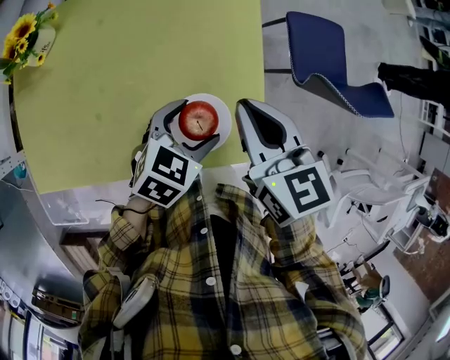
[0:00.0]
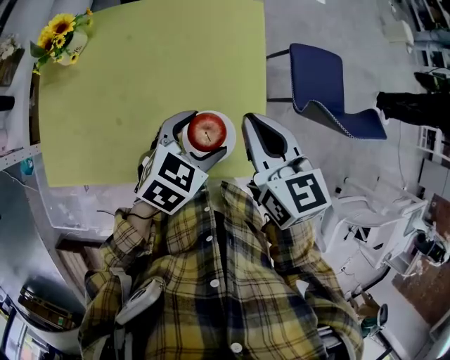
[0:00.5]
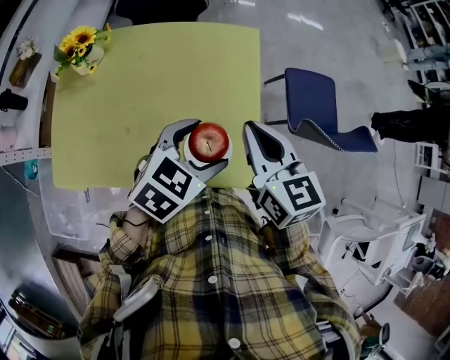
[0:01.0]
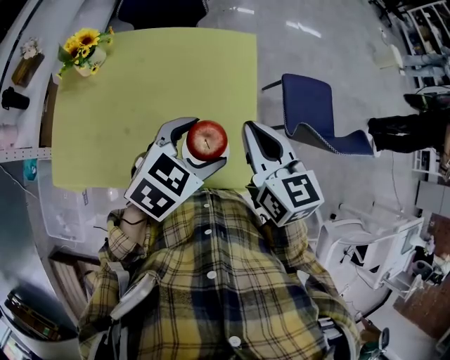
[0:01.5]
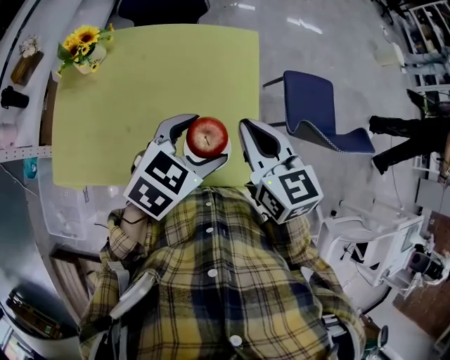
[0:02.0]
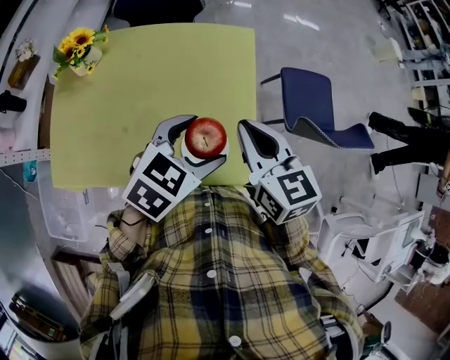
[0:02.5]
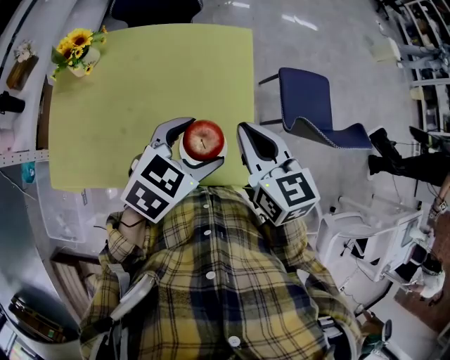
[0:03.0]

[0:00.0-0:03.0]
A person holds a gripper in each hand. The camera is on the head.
0:00.0 to 0:01.5: The left gripper goes some 15 cm upward, while the right gripper goes roughly 10 cm upward.
0:01.5 to 0:03.0: There are only small adjustments of the grippers.

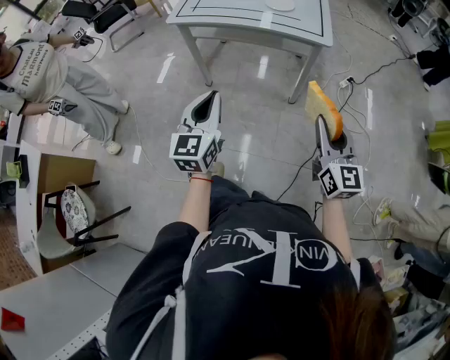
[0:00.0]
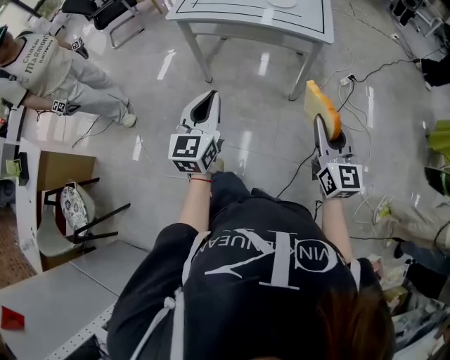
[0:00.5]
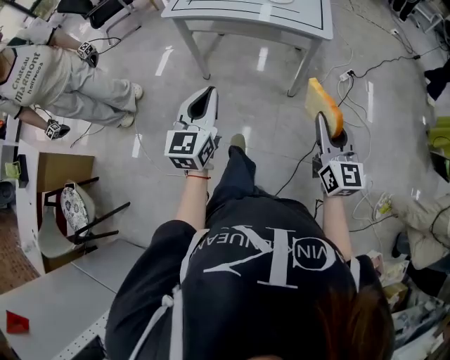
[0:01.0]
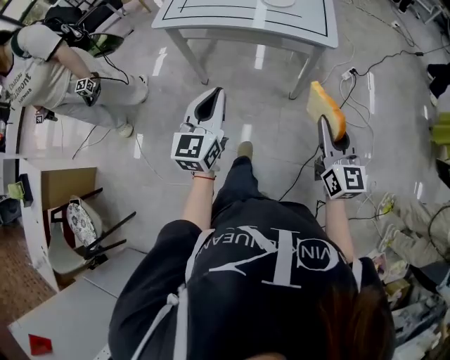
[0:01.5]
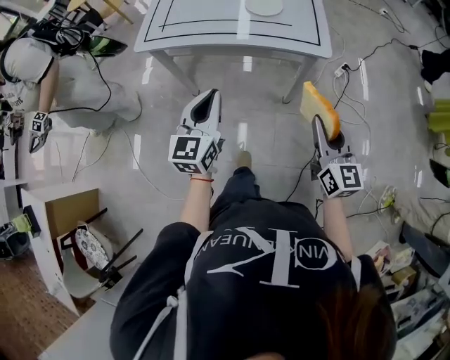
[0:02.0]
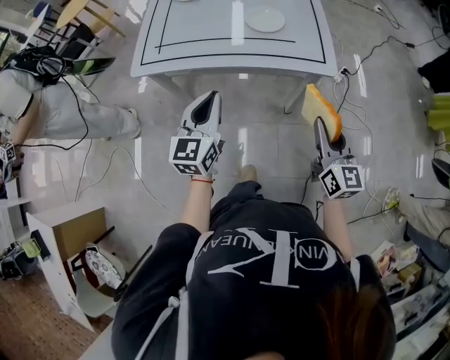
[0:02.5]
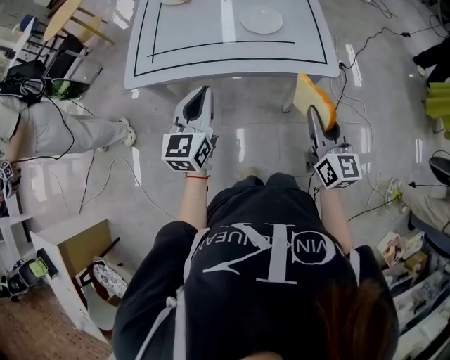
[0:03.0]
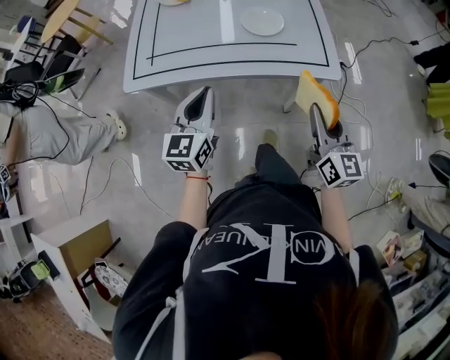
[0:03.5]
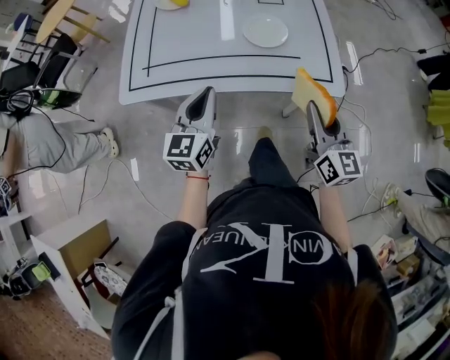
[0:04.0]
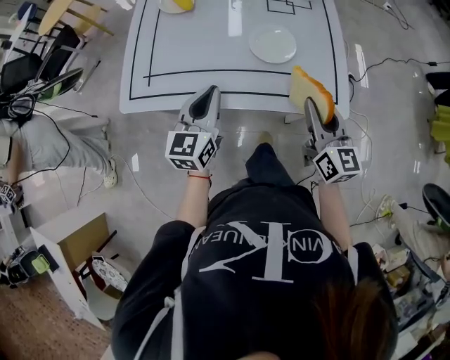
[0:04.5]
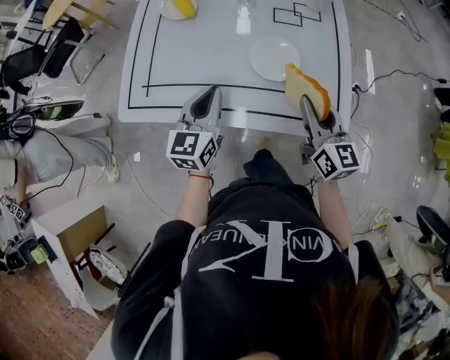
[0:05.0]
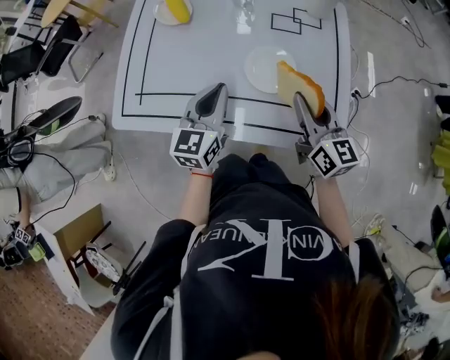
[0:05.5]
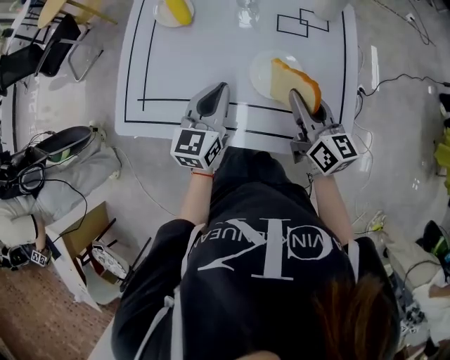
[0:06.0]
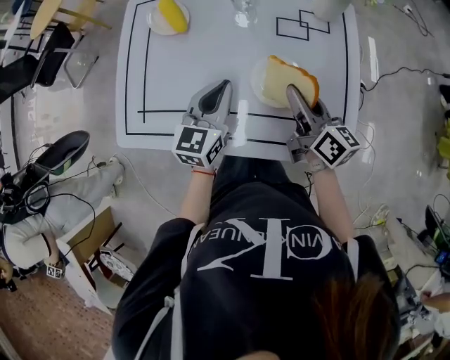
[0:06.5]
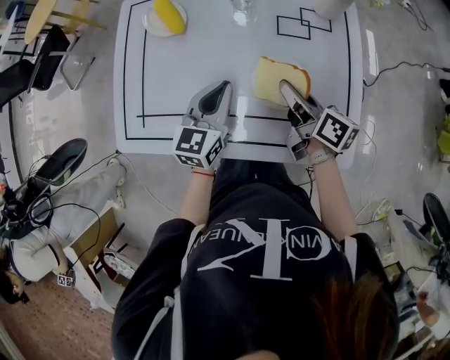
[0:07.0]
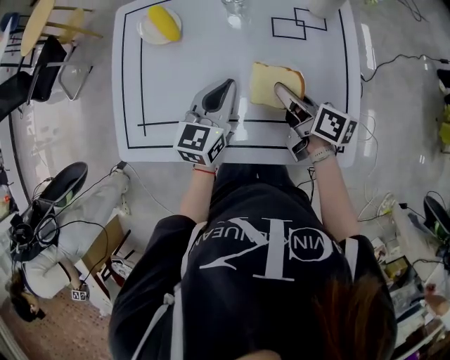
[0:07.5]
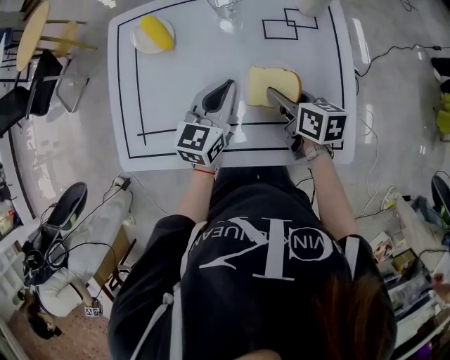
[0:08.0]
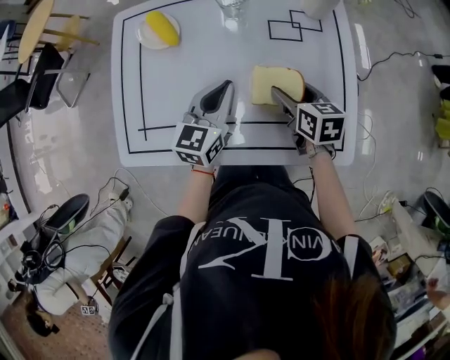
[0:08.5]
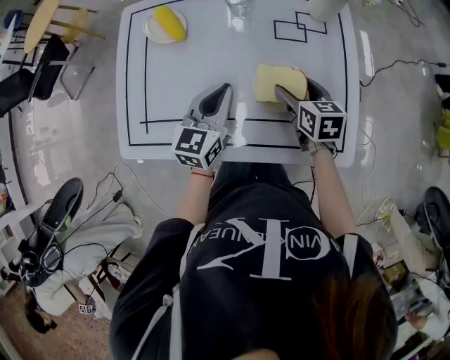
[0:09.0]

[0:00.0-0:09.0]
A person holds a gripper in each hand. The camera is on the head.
0:00.0 to 0:02.0: Both grippers move forward, approximately 20 cm.
0:02.0 to 0:04.5: Both grippers move forward, some 30 cm.
0:04.5 to 0:07.0: The two grippers go about 20 cm forward. The right gripper rolls clockwise, seen from behind, by roughly 40 degrees.
0:07.0 to 0:09.0: The right gripper swivels some 40 degrees, and opens.

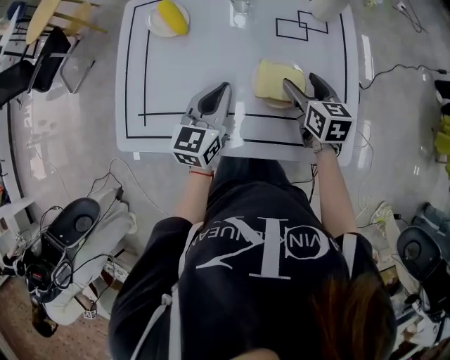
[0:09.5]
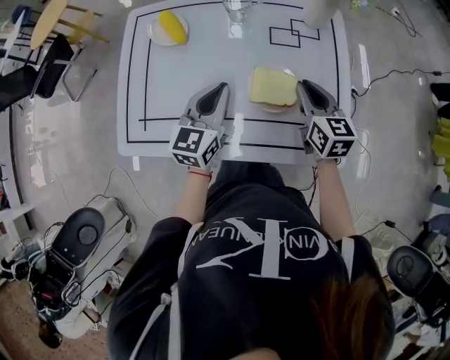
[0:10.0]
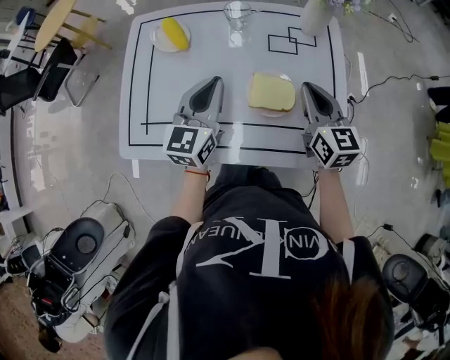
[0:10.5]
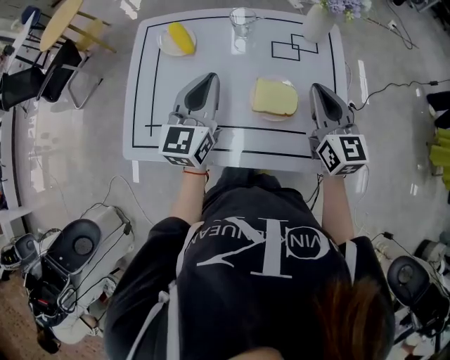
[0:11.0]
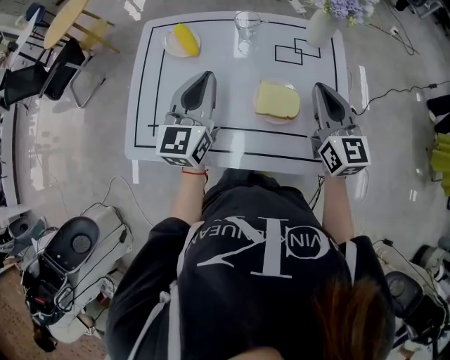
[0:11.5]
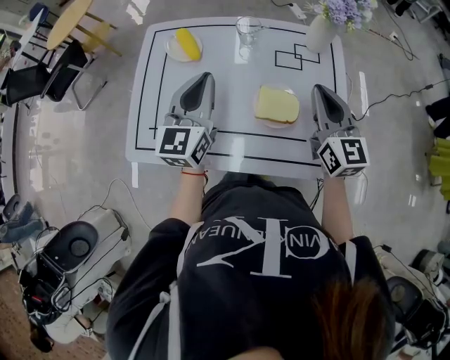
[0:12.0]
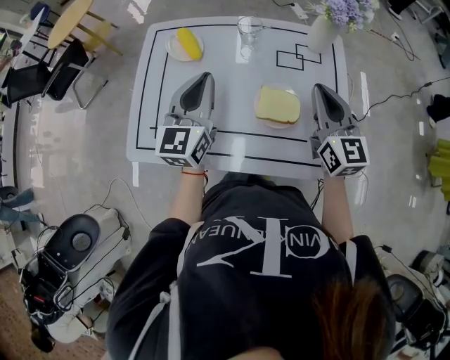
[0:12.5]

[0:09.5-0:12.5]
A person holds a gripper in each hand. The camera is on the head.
0:09.5 to 0:11.0: Both grippers move upward, some 15 cm. The right gripper swivels approximately 30 degrees, and closes.
0:11.0 to 0:12.5: The grippers stay close to where they were, moving slightly.

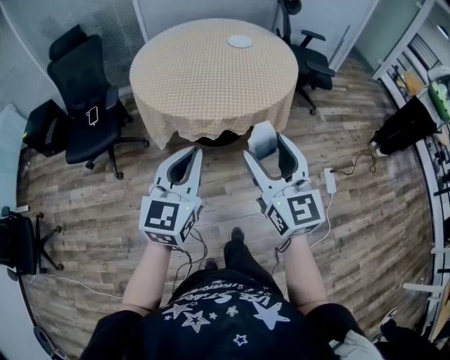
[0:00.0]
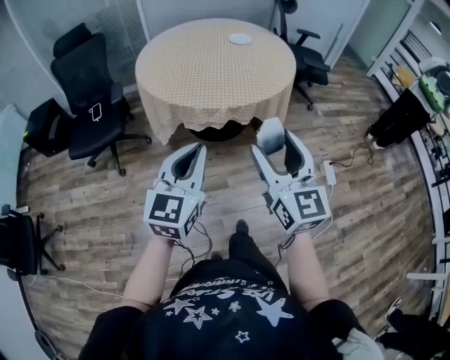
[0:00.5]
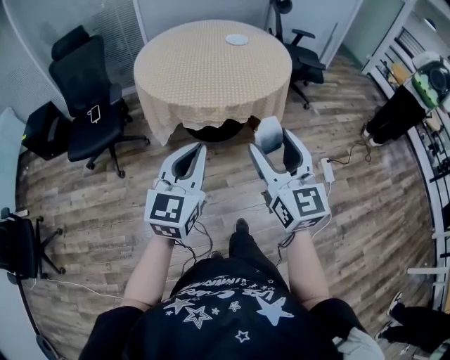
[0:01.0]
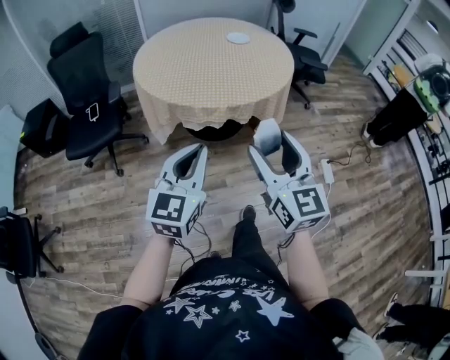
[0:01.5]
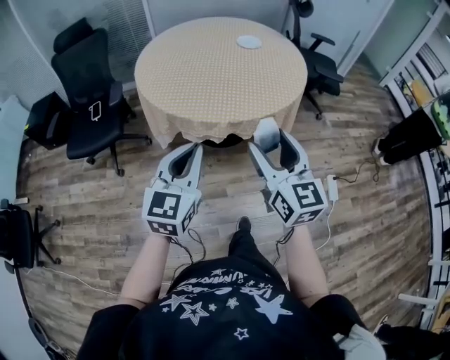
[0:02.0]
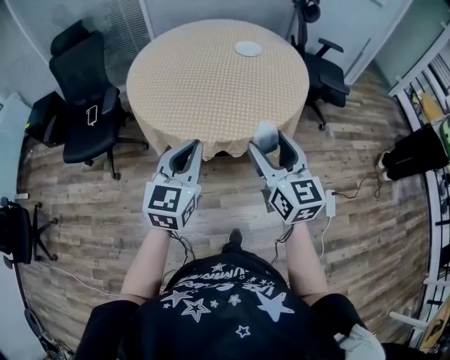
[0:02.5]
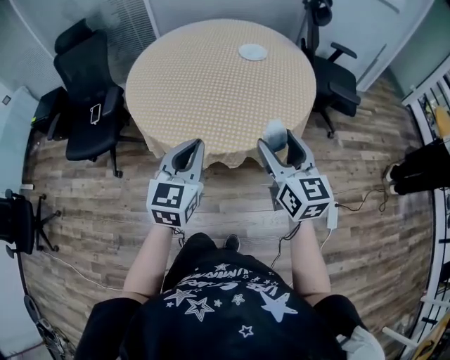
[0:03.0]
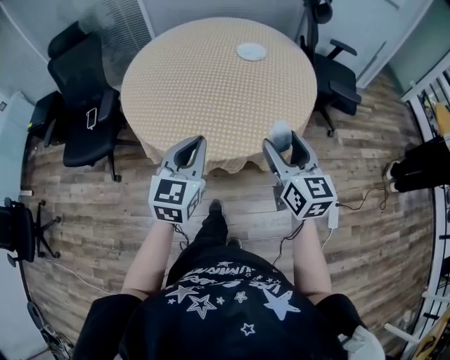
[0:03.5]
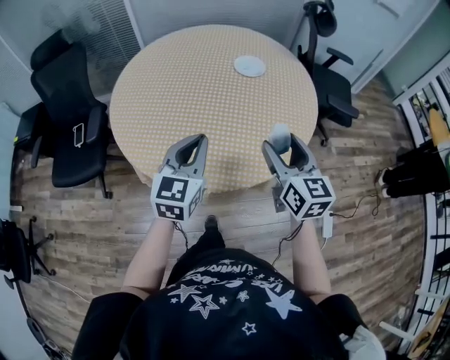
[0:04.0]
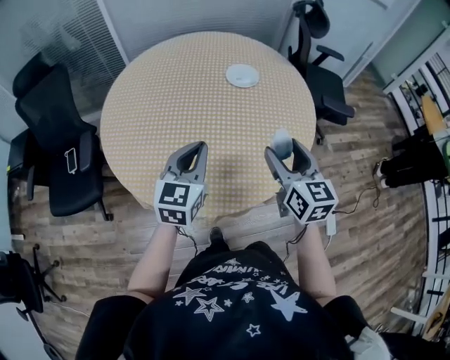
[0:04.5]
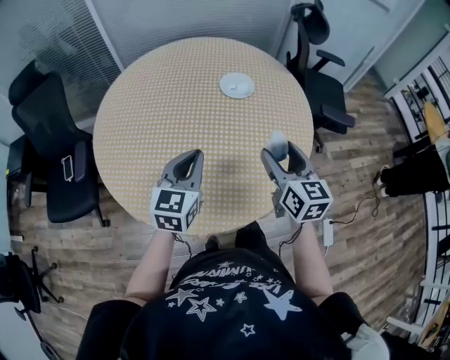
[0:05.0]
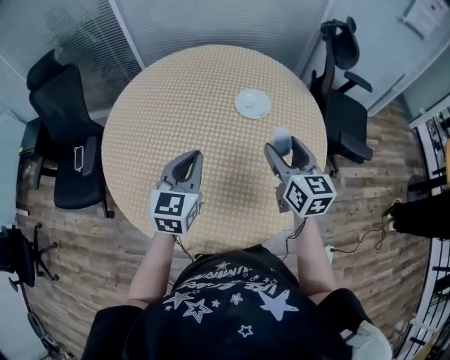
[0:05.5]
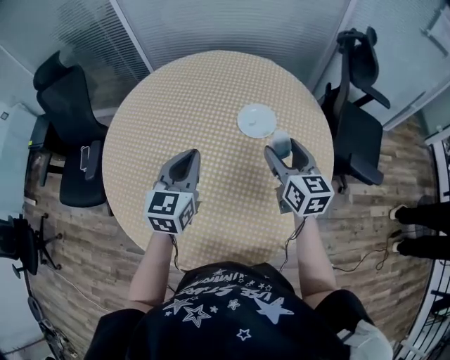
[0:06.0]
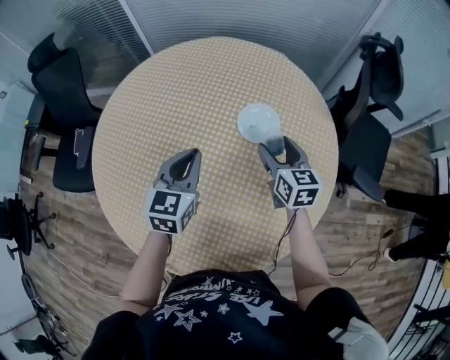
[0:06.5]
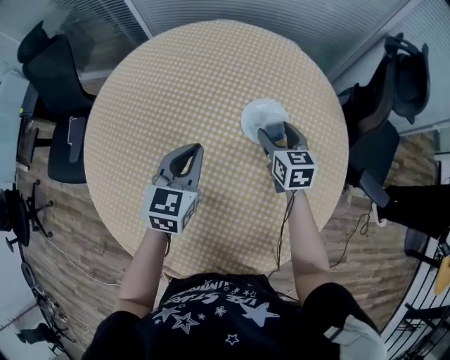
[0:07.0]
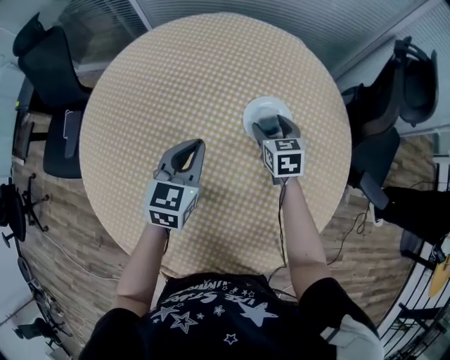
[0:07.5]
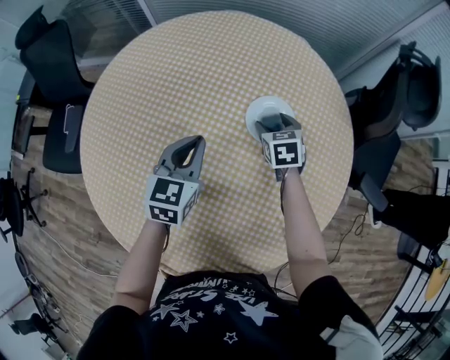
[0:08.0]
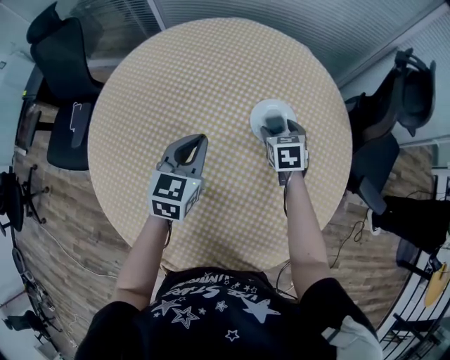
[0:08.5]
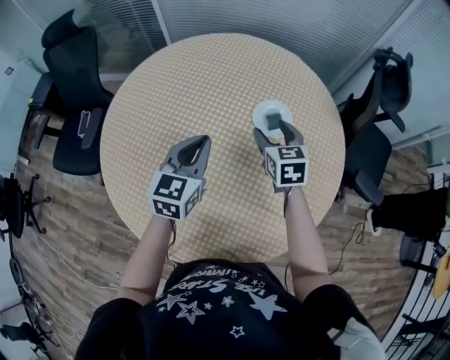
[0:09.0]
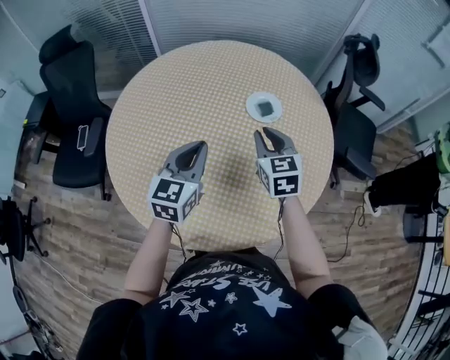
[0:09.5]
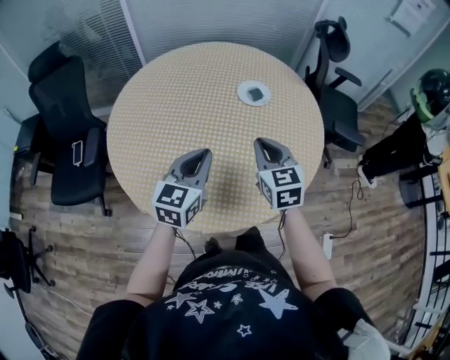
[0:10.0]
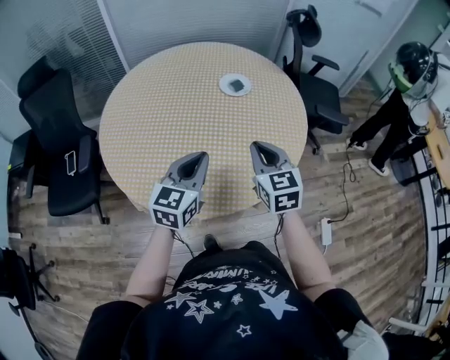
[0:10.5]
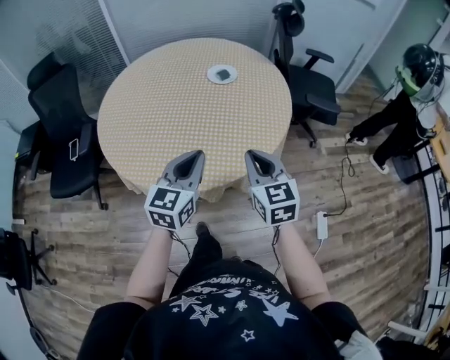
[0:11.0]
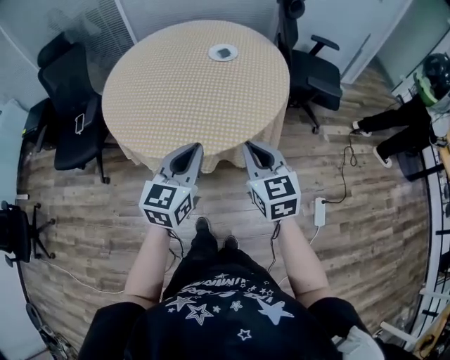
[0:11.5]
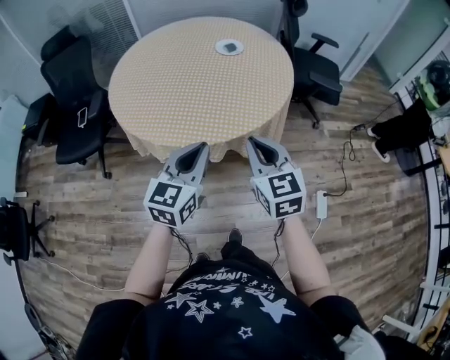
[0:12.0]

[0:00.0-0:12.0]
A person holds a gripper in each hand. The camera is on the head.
0:00.0 to 0:02.0: The left gripper travels backward and back again, some 10 cm each way. Meanwhile the right gripper goes some 5 cm forward.
0:02.0 to 0:04.0: The grippers both shift forward by approximately 35 cm.
0:04.0 to 0:06.0: Both grippers travel together forward, roughly 30 cm.
0:06.0 to 0:08.0: The right gripper heads downward and forward, covering approximately 25 cm, and points its fingers about 30 degrees further downward; the left gripper moves downward and forward, about 15 cm.
0:08.0 to 0:10.0: The right gripper travels backward and upward by roughly 40 cm, turns by roughly 30 degrees, and closes. The left gripper shifts roughly 25 cm backward, and rotates approximately 20 degrees.
0:10.0 to 0:12.0: The two grippers go approximately 30 cm backward.
